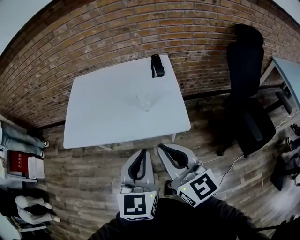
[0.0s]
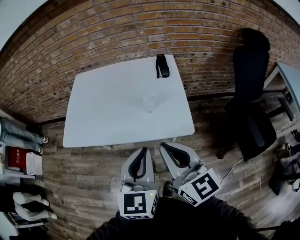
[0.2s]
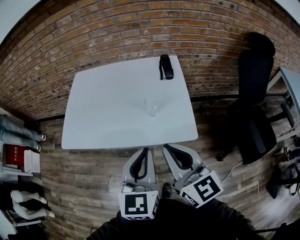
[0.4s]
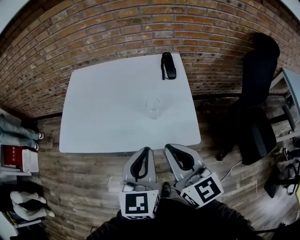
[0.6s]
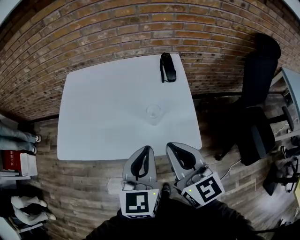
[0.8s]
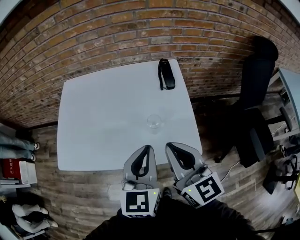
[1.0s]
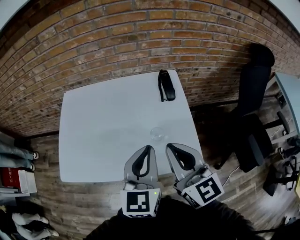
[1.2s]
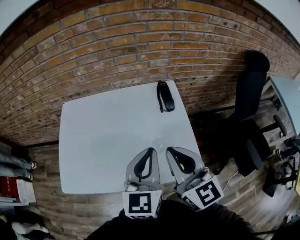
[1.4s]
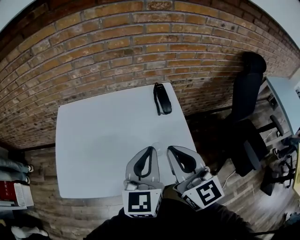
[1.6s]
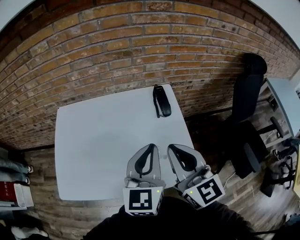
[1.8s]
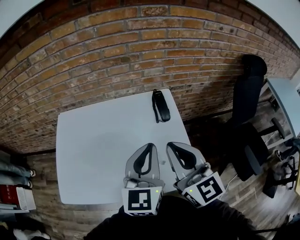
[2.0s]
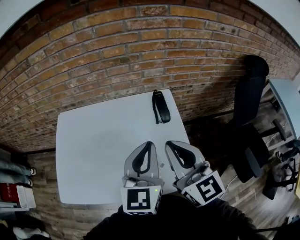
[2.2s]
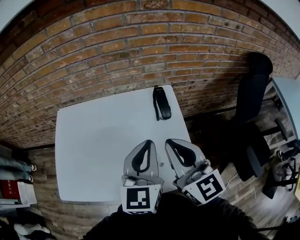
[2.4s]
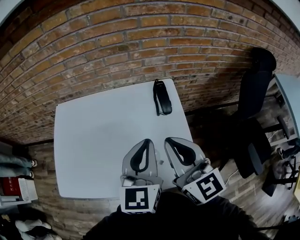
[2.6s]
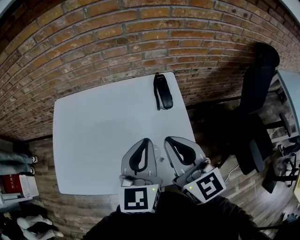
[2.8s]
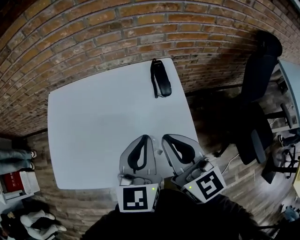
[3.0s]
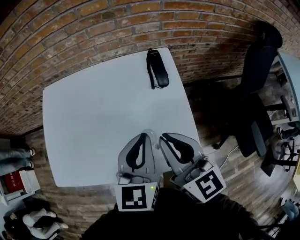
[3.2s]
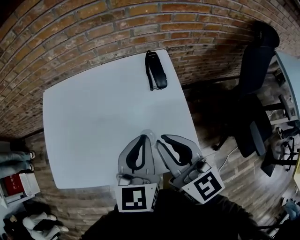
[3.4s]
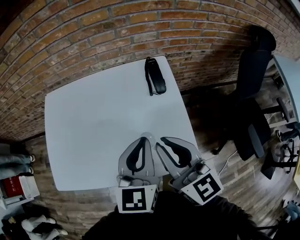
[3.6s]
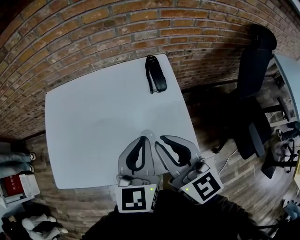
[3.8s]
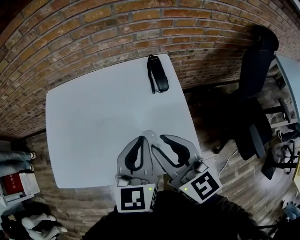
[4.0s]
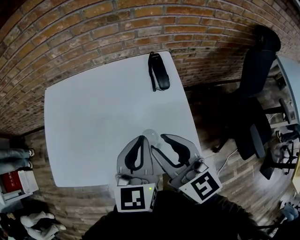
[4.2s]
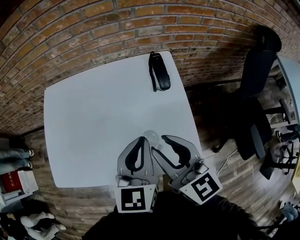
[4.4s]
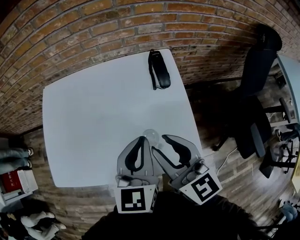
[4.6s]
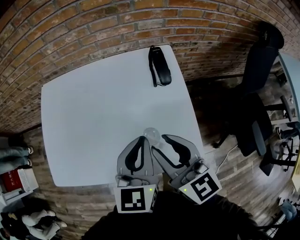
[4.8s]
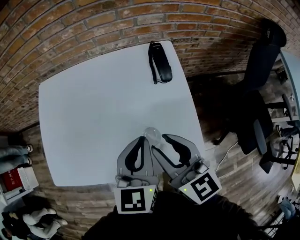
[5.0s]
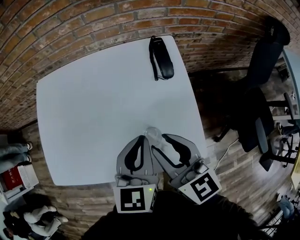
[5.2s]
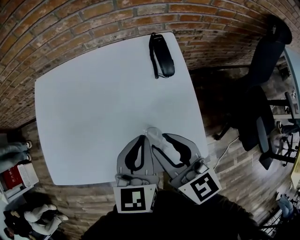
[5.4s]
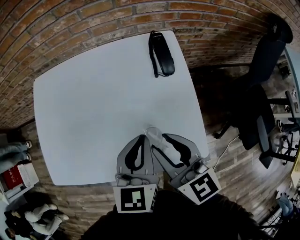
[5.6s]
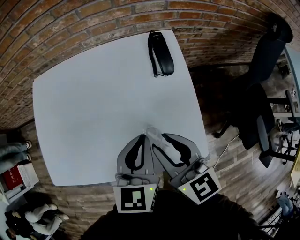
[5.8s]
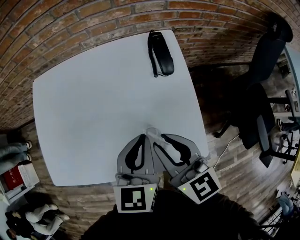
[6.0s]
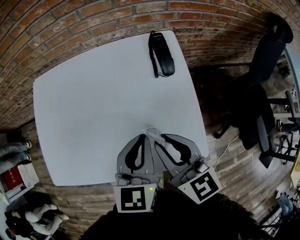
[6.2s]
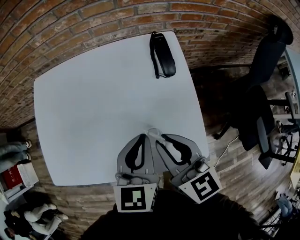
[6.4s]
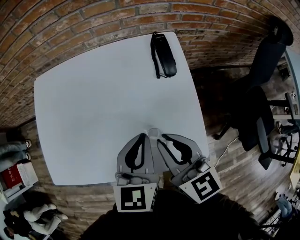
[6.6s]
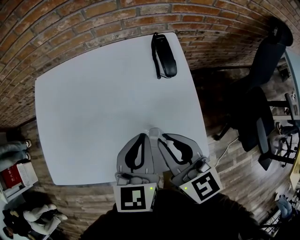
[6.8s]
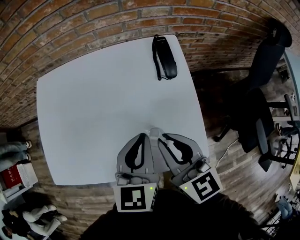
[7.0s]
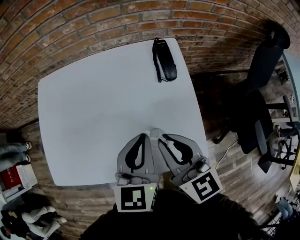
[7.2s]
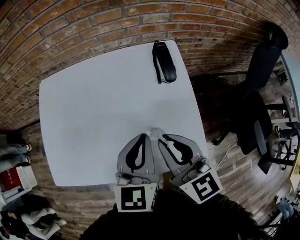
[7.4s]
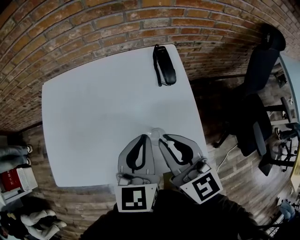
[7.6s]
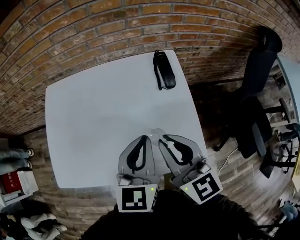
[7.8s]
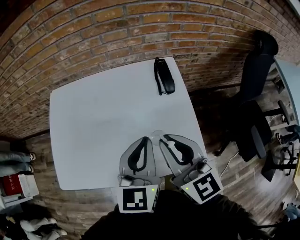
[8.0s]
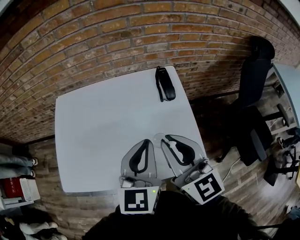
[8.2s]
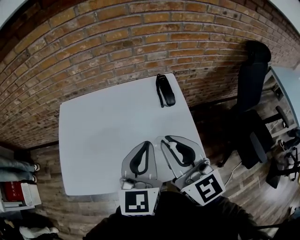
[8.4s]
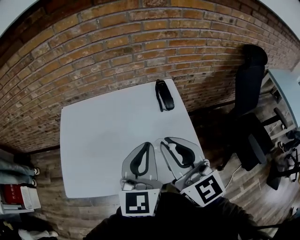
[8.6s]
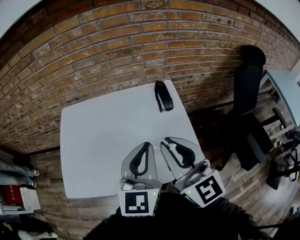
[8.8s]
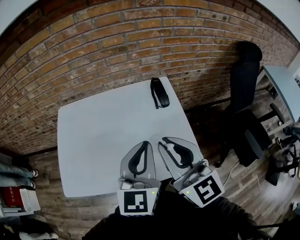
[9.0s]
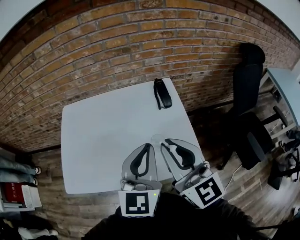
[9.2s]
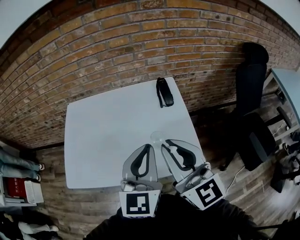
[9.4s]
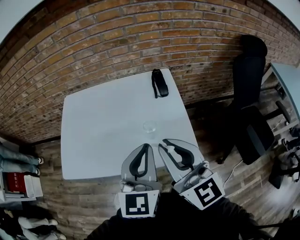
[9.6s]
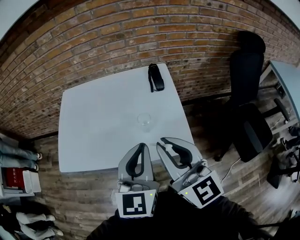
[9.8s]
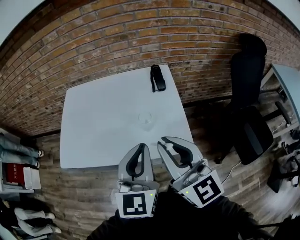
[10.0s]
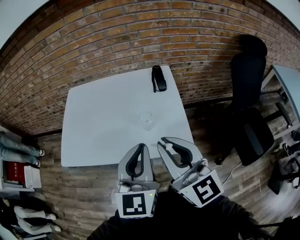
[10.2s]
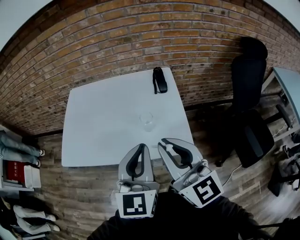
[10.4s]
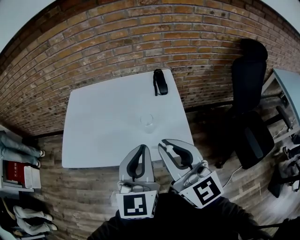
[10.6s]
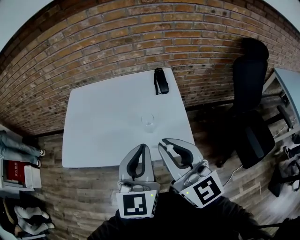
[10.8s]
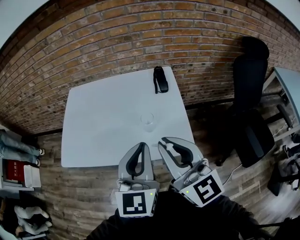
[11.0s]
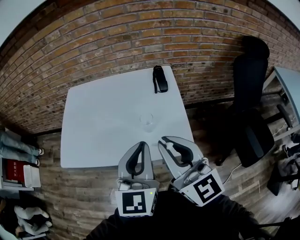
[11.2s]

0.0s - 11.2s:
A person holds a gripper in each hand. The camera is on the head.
0.0s - 1.6s: Both grippers travel together forward, about 25 cm.
1.6s - 3.2s: Both grippers move downward, some 5 cm.
3.2s - 4.8s: The right gripper opens its fingers.
4.8s - 6.4s: The grippers make only small movements.
6.4s - 8.0s: The grippers both shift upward by some 10 cm.
8.0s - 9.6s: Both grippers move backward and upward, roughly 15 cm.
9.6s - 11.2s: The grippers make only small movements.

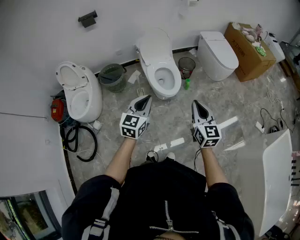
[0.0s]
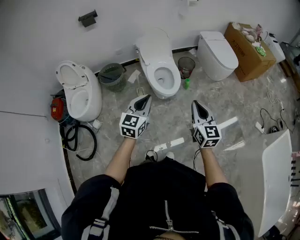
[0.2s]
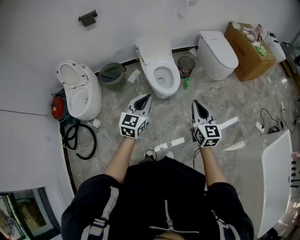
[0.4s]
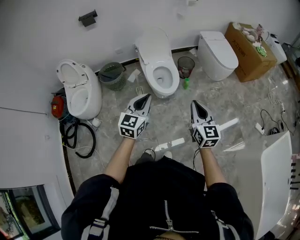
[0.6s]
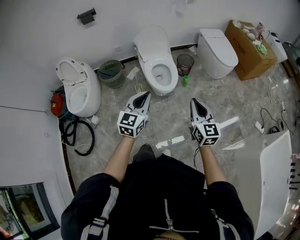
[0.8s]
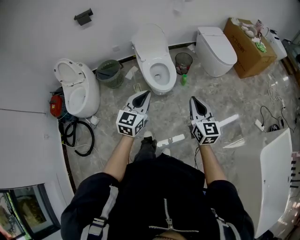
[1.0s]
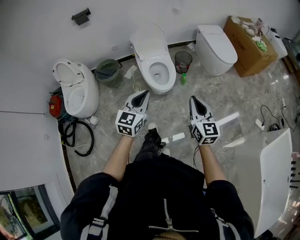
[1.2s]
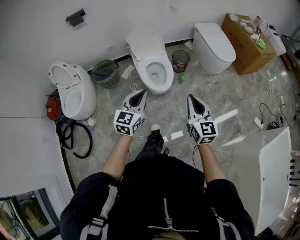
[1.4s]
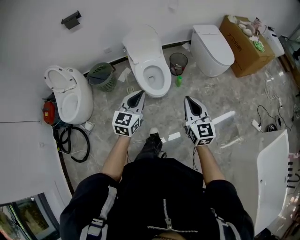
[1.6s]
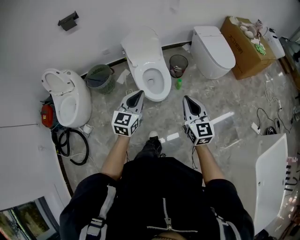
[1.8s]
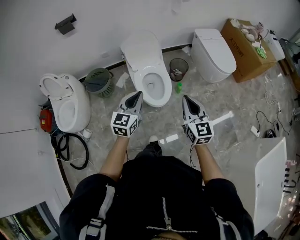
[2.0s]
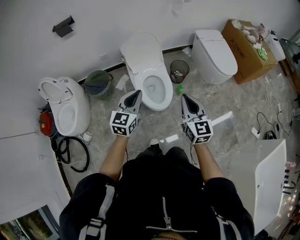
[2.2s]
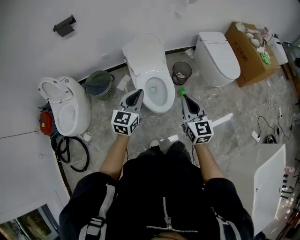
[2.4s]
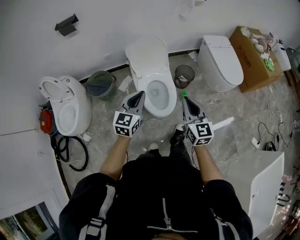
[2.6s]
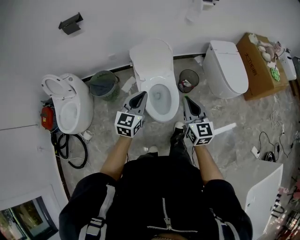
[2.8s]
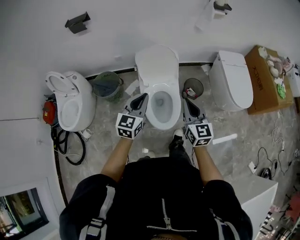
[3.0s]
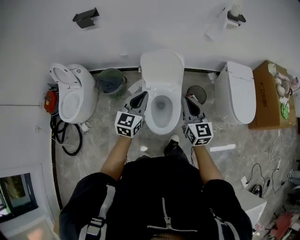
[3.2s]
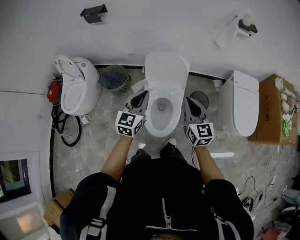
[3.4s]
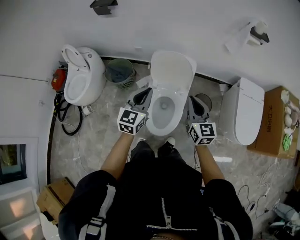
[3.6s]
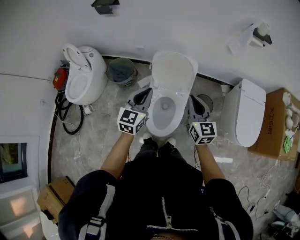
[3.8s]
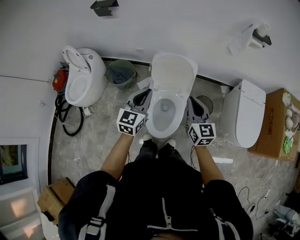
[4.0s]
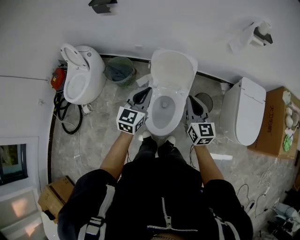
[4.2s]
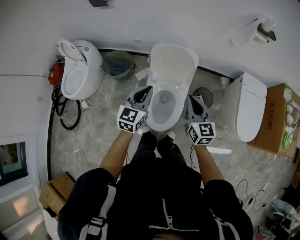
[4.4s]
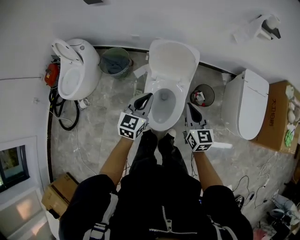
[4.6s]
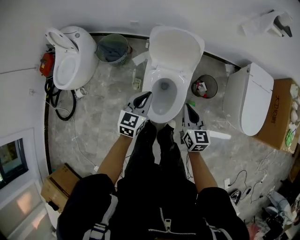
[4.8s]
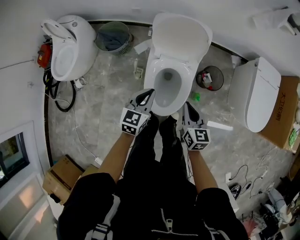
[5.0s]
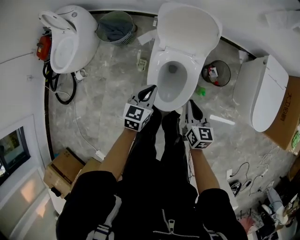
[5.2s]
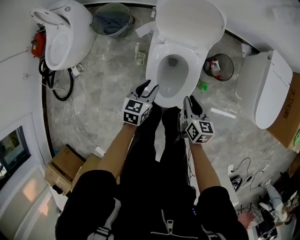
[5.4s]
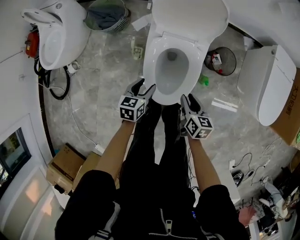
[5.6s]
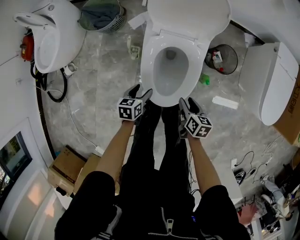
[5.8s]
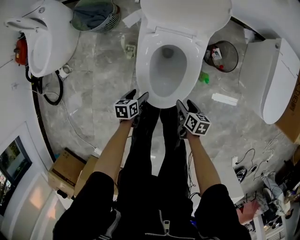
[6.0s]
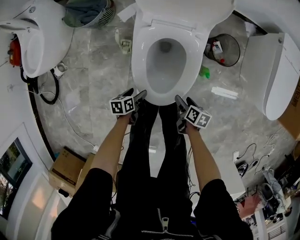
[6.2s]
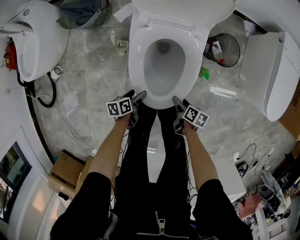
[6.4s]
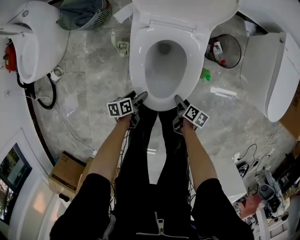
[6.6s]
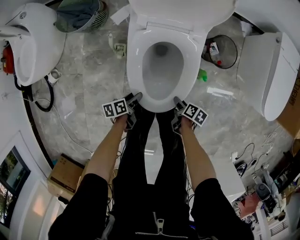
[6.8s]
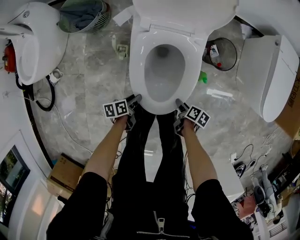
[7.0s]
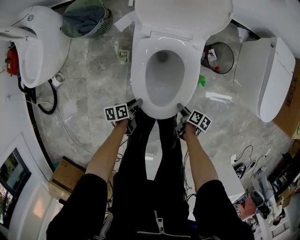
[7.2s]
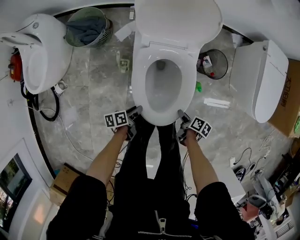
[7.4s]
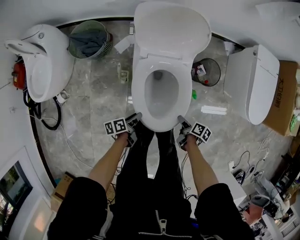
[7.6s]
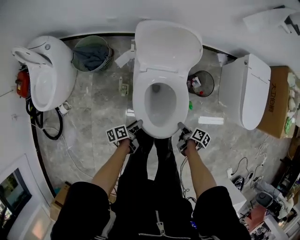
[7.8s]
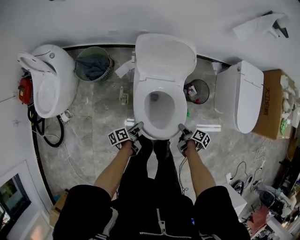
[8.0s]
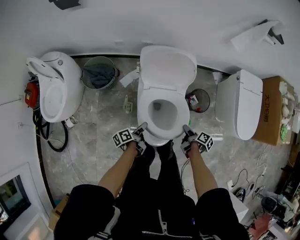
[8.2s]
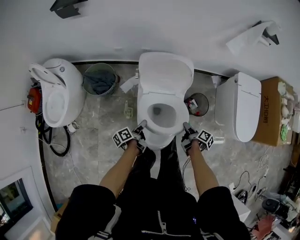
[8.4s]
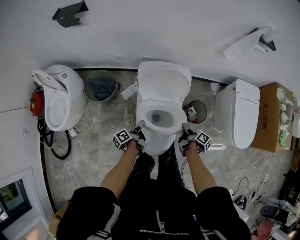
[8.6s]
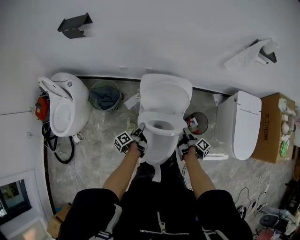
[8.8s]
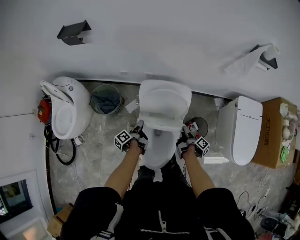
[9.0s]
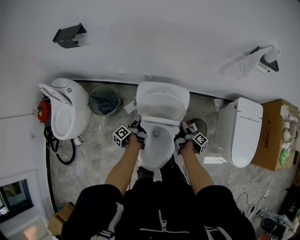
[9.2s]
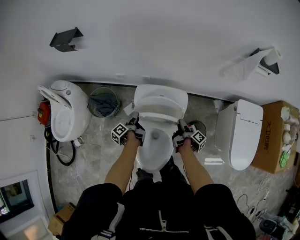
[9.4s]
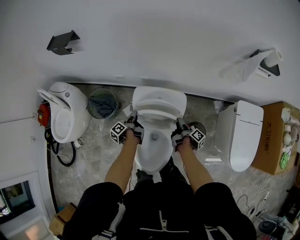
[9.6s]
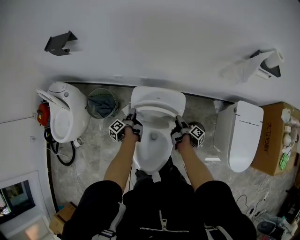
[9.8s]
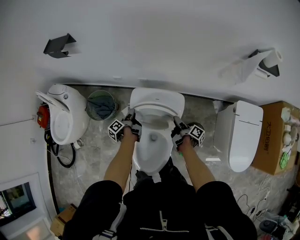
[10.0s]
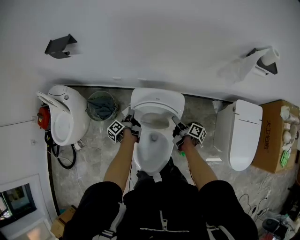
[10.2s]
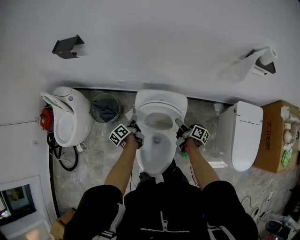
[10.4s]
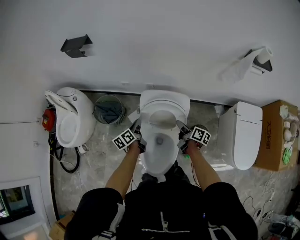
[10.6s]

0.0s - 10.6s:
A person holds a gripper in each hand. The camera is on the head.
0.0s - 1.6s: The two grippers go some 10 cm forward and to the right.
1.6s - 3.0s: The two grippers go roughly 35 cm forward.
3.0s - 4.6s: Both grippers move forward and downward, roughly 15 cm.
4.6s - 6.0s: Both grippers travel together downward, about 50 cm. The right gripper tips its fingers downward by roughly 40 degrees, and opens, while the left gripper tips its fingers downward by about 40 degrees, and opens its fingers.
6.0s - 7.6s: The right gripper travels downward and back again, roughly 10 cm each way, and rotates roughly 30 degrees, while the left gripper travels upward by roughly 5 cm, swivels about 30 degrees, and closes its fingers.
7.6s - 9.0s: Both grippers move forward and upward, about 35 cm. The left gripper turns by about 40 degrees; the right gripper turns by roughly 40 degrees.
9.0s - 10.6s: Both grippers move upward and forward, some 10 cm. The right gripper rotates approximately 40 degrees, while the left gripper changes its angle by some 40 degrees, and closes its fingers.

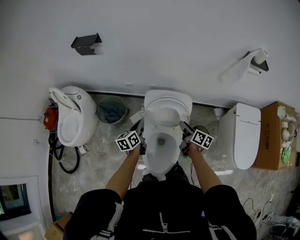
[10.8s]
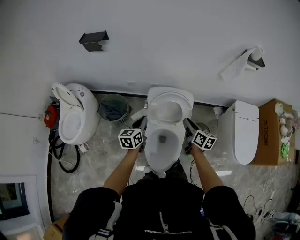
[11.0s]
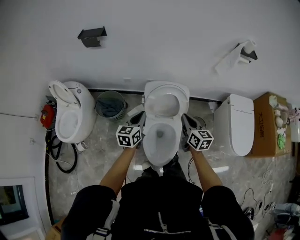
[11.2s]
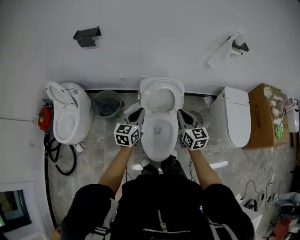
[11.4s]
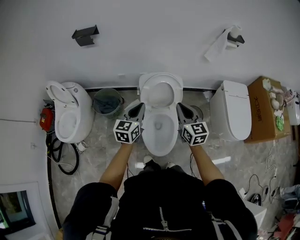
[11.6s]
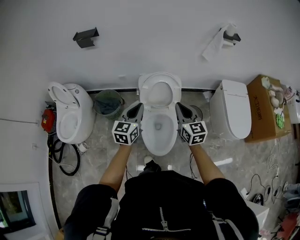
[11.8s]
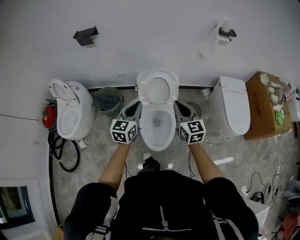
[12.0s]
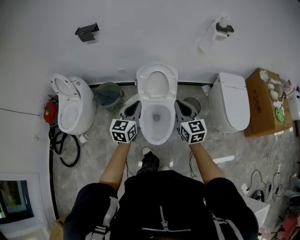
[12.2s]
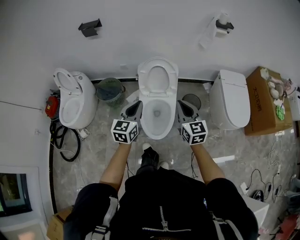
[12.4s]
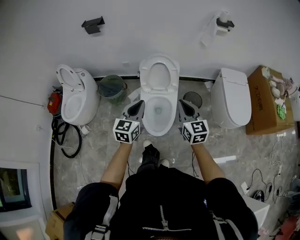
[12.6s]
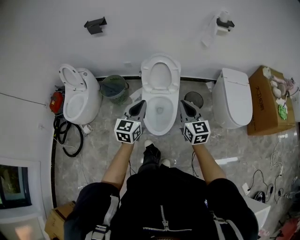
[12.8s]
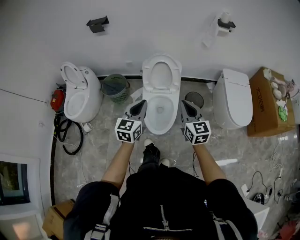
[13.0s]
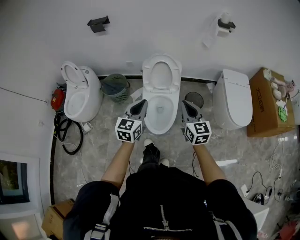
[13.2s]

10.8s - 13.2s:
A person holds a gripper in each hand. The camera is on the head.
10.8s - 12.0s: Both grippers travel together backward and upward, roughly 30 cm. The right gripper twists about 50 degrees counterclockwise, seen from behind, and closes its fingers. Meanwhile the left gripper turns by roughly 40 degrees.
12.0s - 13.2s: Both grippers move backward, about 15 cm.
